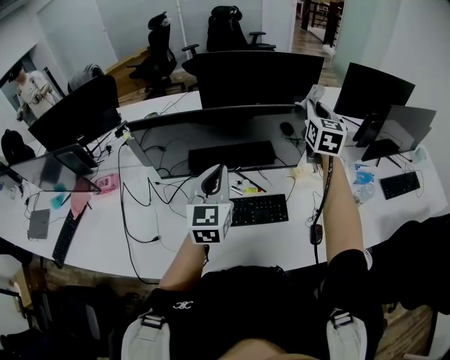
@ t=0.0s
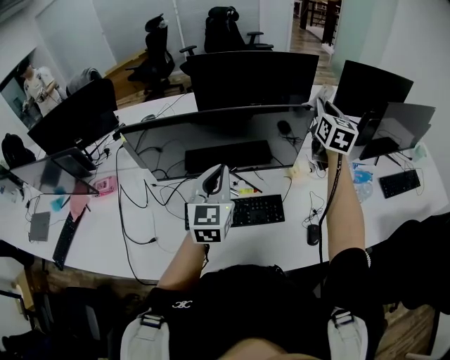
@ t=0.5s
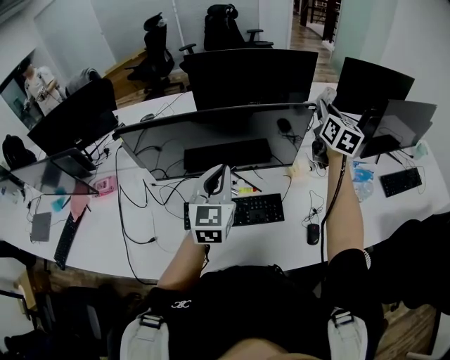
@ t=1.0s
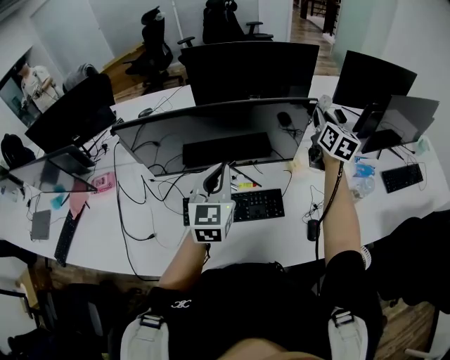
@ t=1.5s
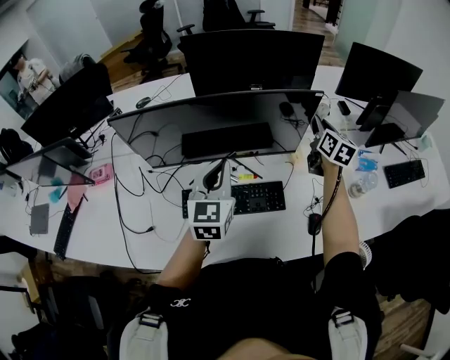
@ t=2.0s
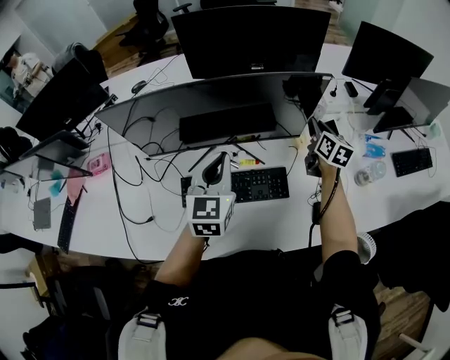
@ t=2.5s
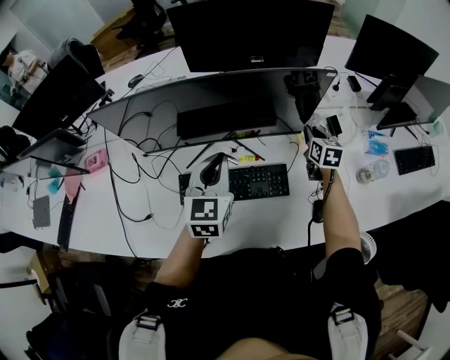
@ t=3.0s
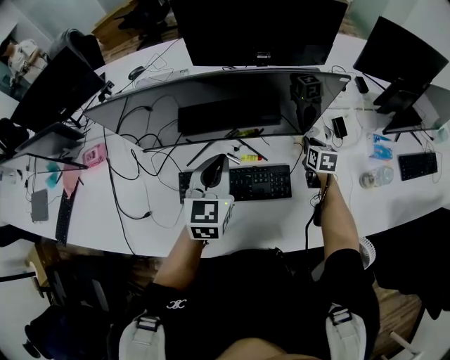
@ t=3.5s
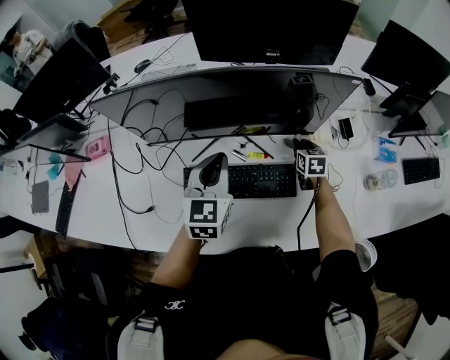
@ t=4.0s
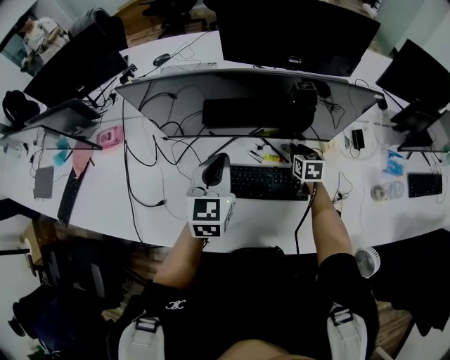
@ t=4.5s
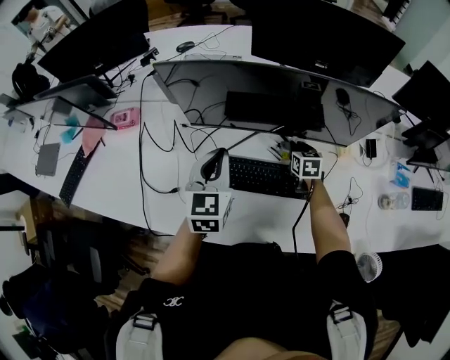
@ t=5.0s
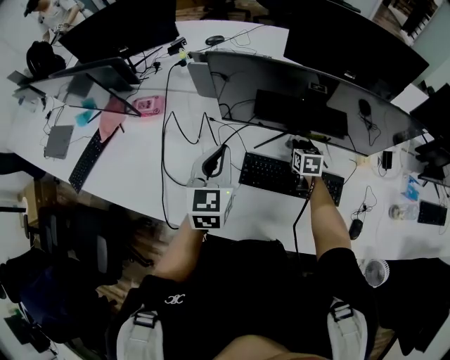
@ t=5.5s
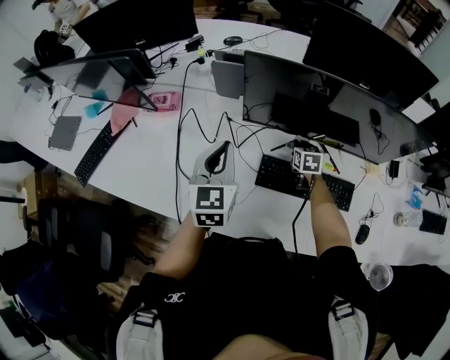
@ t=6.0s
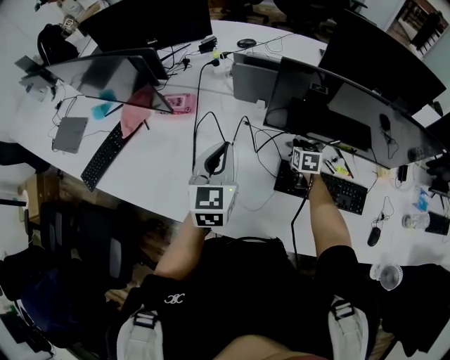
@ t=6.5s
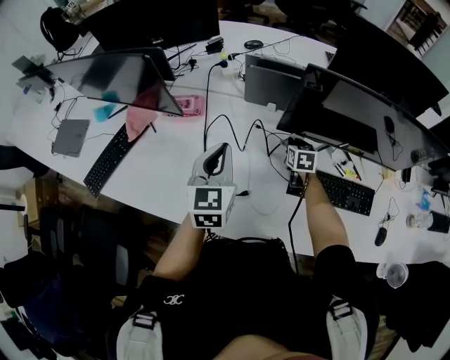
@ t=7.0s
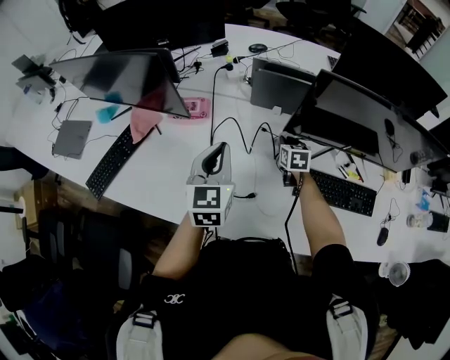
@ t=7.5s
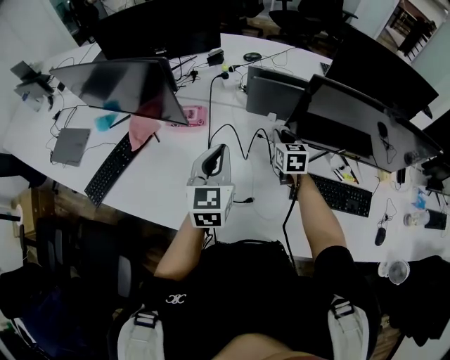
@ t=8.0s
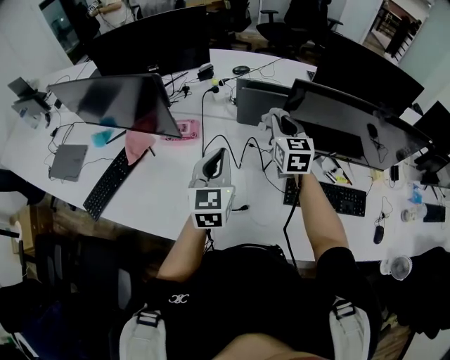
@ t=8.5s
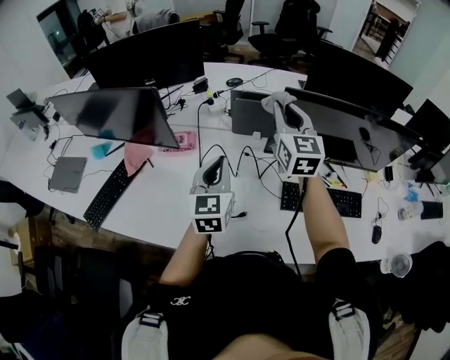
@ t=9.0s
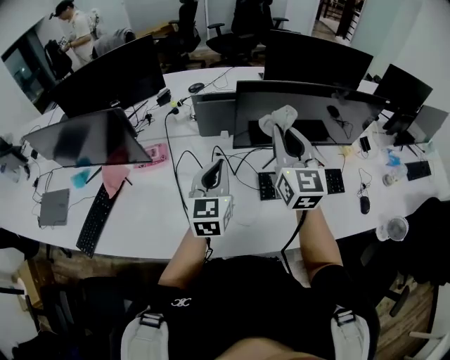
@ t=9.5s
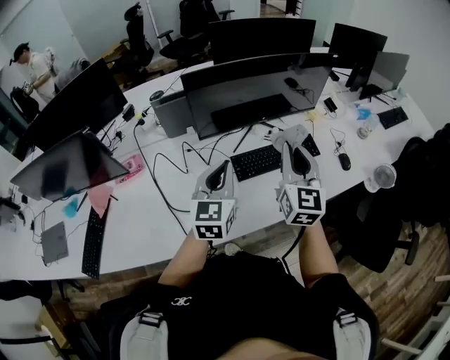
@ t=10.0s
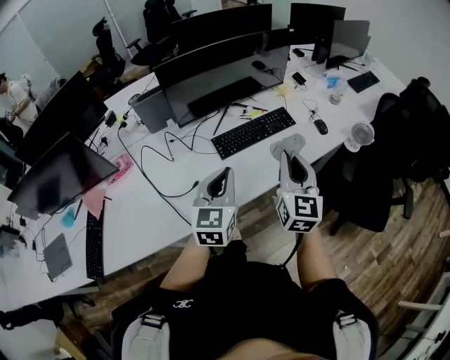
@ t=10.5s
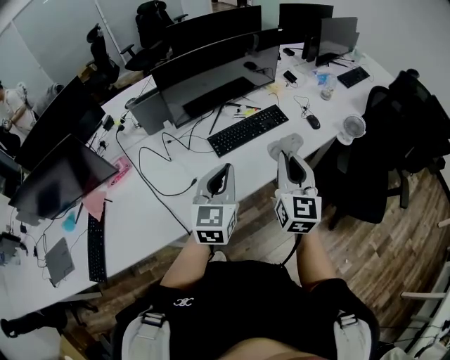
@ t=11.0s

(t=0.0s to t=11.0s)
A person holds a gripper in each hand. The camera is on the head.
t=0.0s - t=2.0s: The left gripper shifts by roughly 5 cm. Meanwhile the right gripper moves downward and to the right, some 15 cm, and changes its angle by roughly 20 degrees.
t=2.0s - t=3.5s: The right gripper moves downward, approximately 25 cm, and turns by approximately 30 degrees. The left gripper travels downward by some 5 cm.
t=3.5s - t=5.5s: The grippers both shift to the left by about 30 cm.
t=5.5s - t=7.5s: The grippers both shift to the left by approximately 25 cm.
t=7.5s - t=9.0s: The right gripper shifts some 35 cm upward, and tips its fingers upward by about 40 degrees. Meanwhile the left gripper ends up about 5 cm from where it was.
t=9.0s - t=11.0s: The right gripper moves roughly 50 cm, and swivels some 40 degrees. Meanwhile the left gripper moves approximately 35 cm, and rotates roughly 40 degrees.

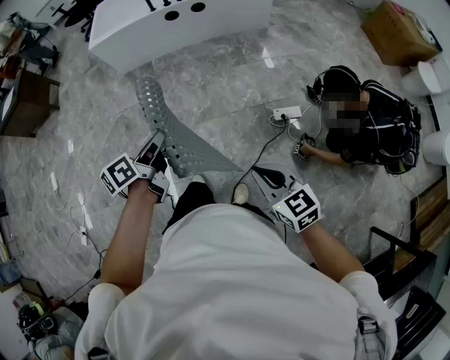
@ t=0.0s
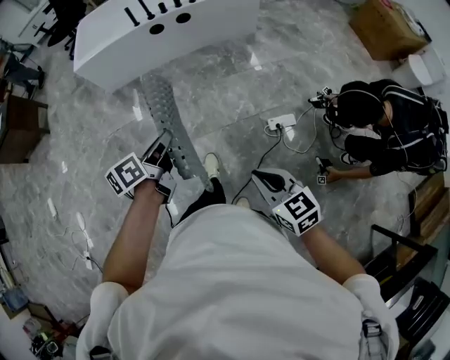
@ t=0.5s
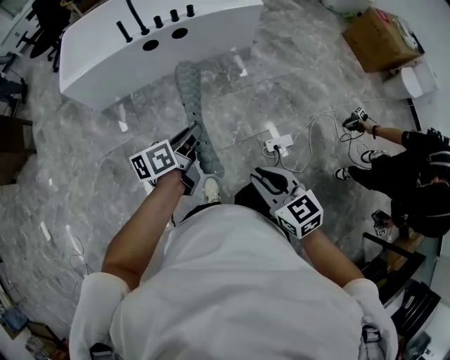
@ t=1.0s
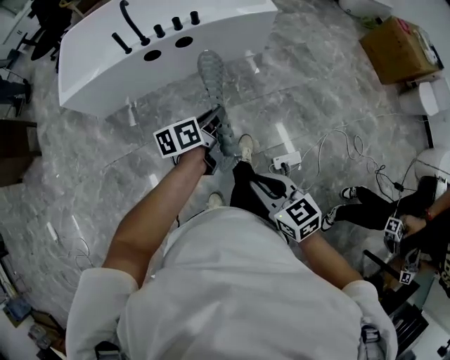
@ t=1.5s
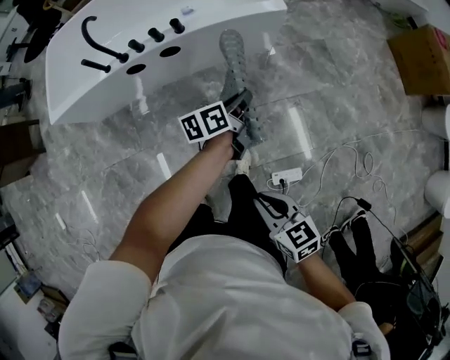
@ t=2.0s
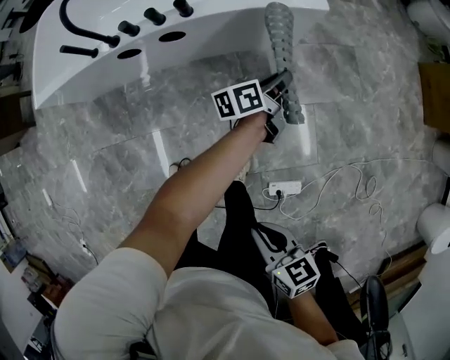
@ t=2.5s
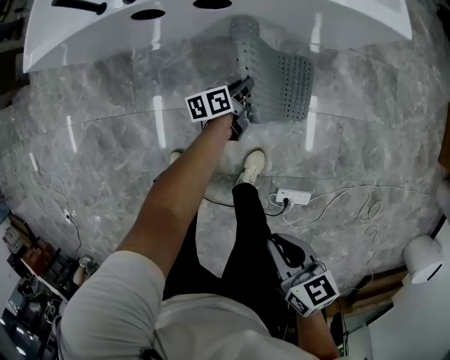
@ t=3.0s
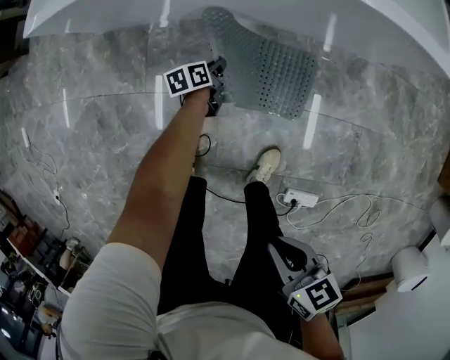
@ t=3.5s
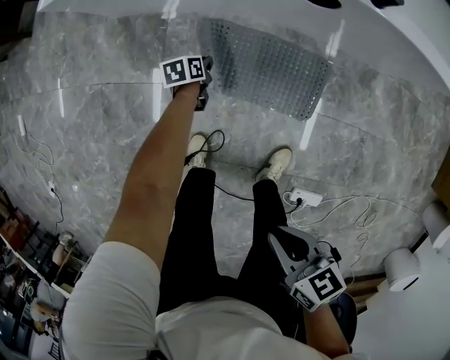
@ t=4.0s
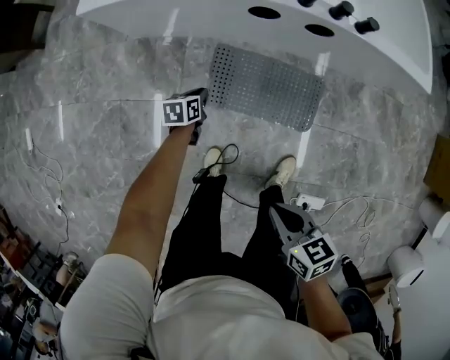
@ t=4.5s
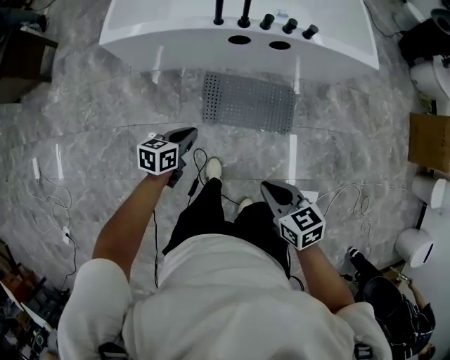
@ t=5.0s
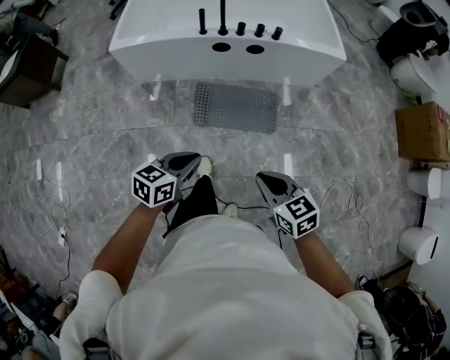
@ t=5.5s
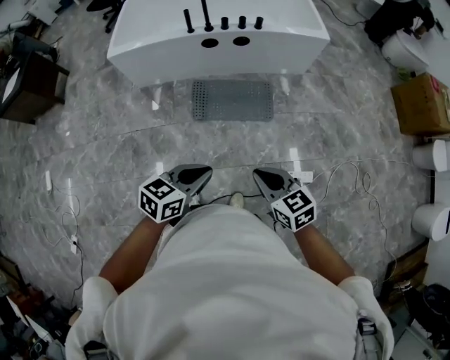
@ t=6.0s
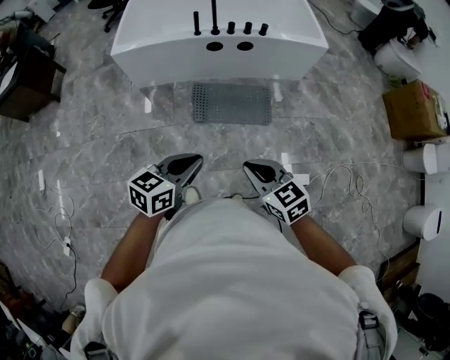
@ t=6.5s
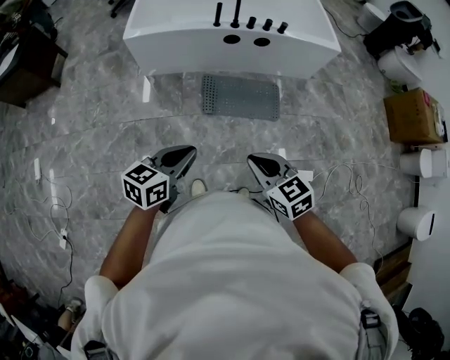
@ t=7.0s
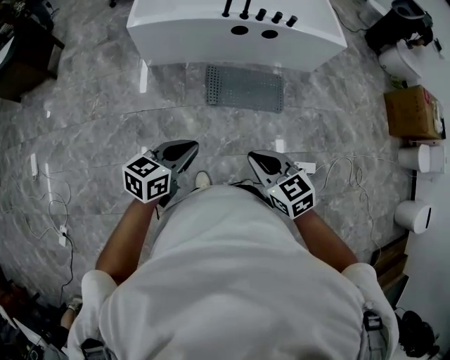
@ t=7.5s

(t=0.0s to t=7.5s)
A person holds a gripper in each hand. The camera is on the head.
t=0.0s - t=2.0s: The pair of grippers is taken forward, about 70 cm.
t=2.0s - t=4.0s: The right gripper ends up roughly 30 cm from where it was, and rotates some 30 degrees; the left gripper moves roughly 70 cm, and tilts its fingers roughly 30 degrees downward.
t=4.0s - t=5.5s: The right gripper travels upward by about 25 cm, and turns by roughly 30 degrees. Meanwhile the left gripper is displaced upward by some 60 cm, and changes its angle by some 50 degrees.
t=5.5s - t=7.5s: Both grippers move to the left and backward, about 25 cm.

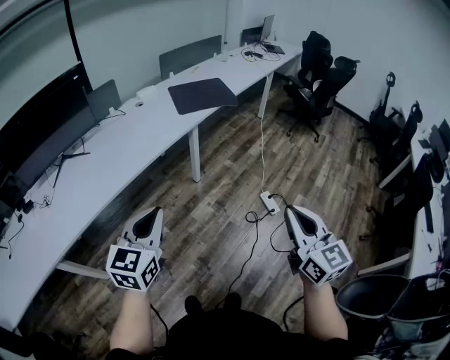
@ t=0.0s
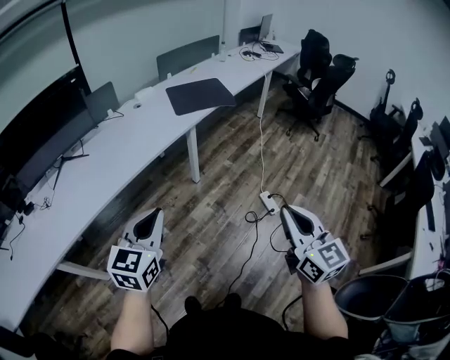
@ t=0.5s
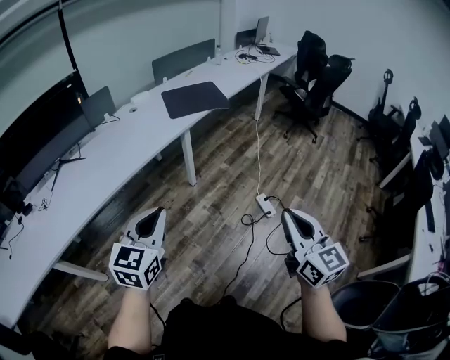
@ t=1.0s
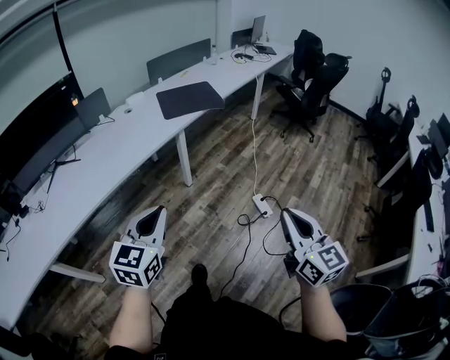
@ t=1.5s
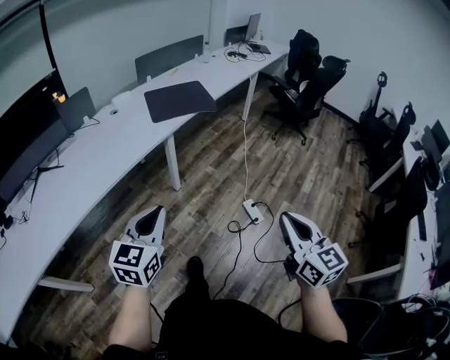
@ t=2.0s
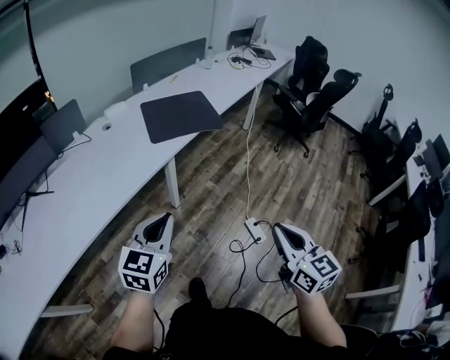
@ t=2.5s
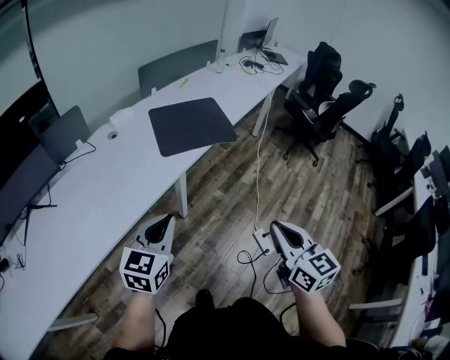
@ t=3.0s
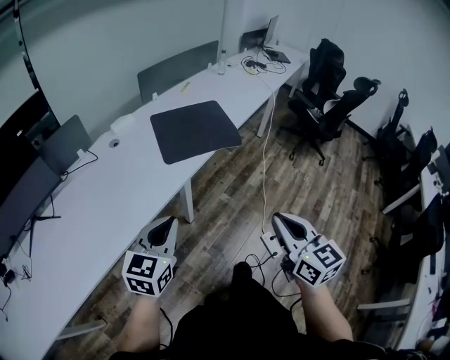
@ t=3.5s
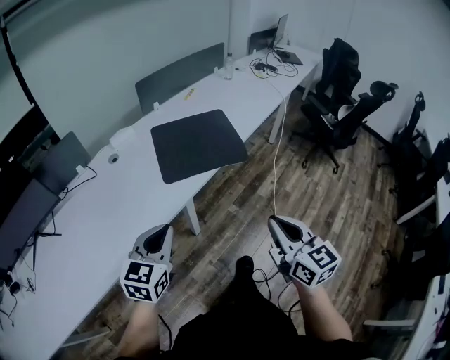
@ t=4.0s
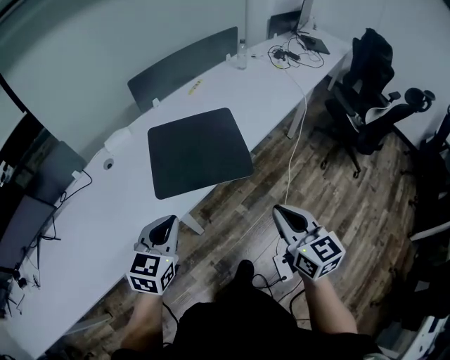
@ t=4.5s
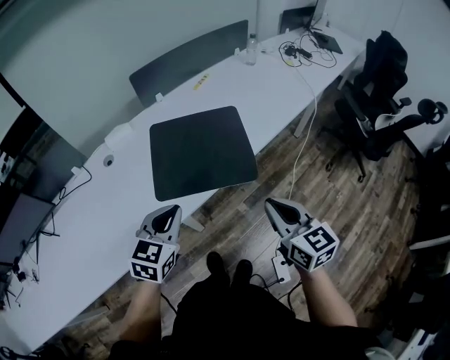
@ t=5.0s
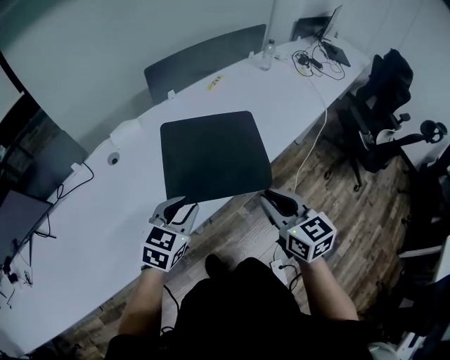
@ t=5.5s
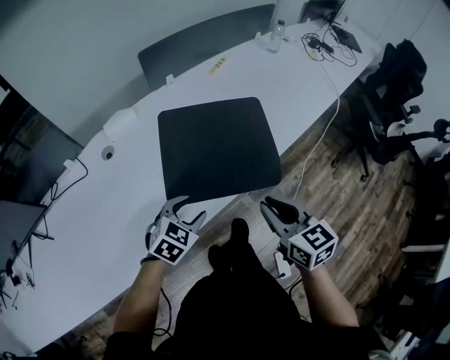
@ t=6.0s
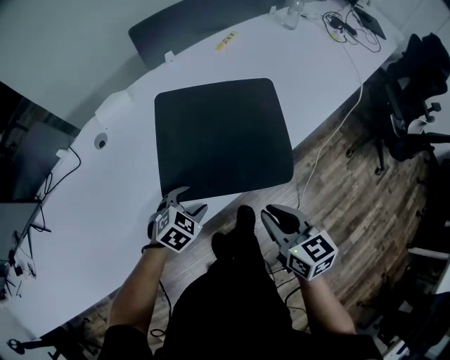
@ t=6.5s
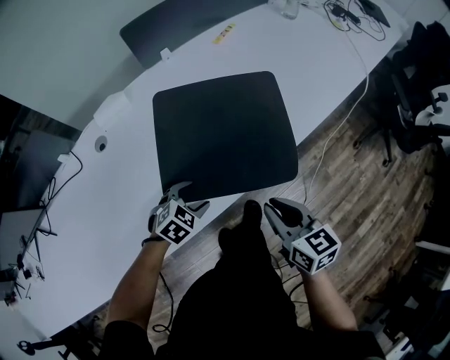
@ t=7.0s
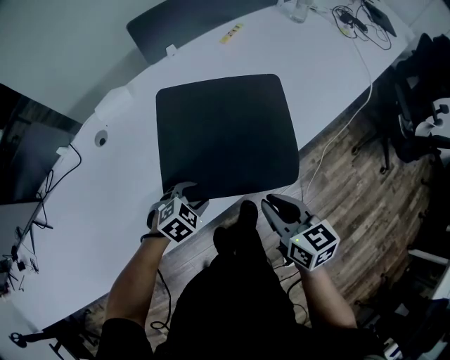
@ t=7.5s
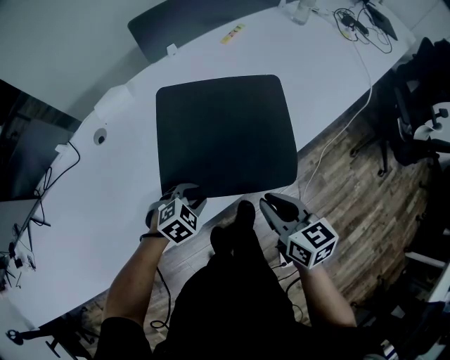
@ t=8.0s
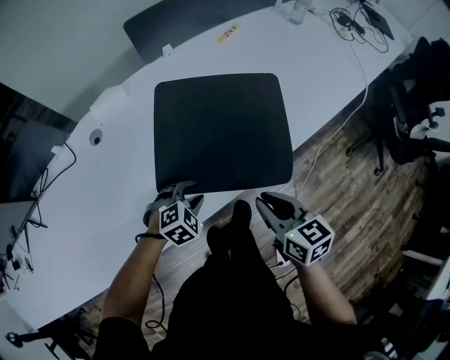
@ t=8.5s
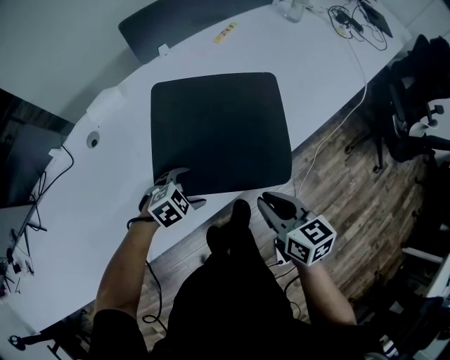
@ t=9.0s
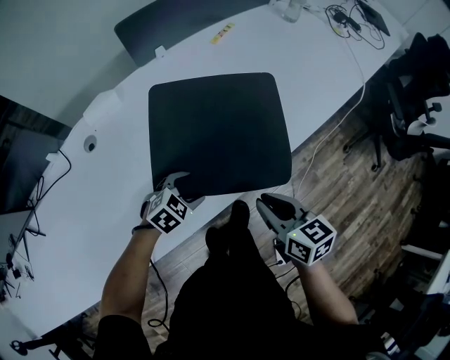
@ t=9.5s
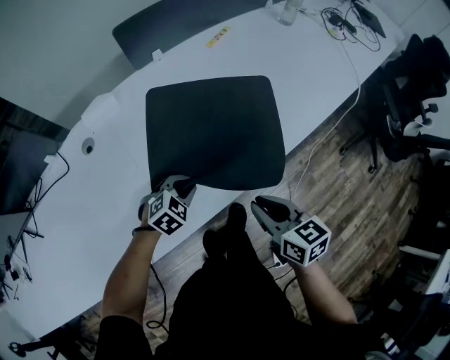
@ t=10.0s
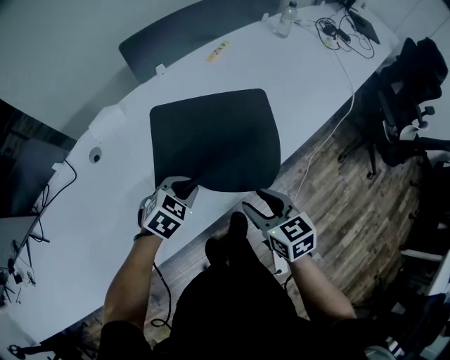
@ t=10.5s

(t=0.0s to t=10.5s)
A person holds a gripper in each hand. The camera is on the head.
t=0.0s - t=2.0s: The right gripper is displaced to the right and forward by some 15 cm. The left gripper is displaced forward and to the right by approximately 15 cm.
t=2.0s - t=4.0s: Both grippers are carried forward, about 50 cm.
t=4.0s - t=6.5s: The two grippers go approximately 40 cm forward and downward. The right gripper turns by about 30 degrees; the left gripper angles its fingers downward, by approximately 40 degrees, and opens up.
t=6.5s - t=8.5s: The right gripper changes place by about 5 cm, while the left gripper closes up.
t=8.5s - t=10.5s: The right gripper opens up. The left gripper shifts approximately 10 cm upward and forward, and opens and closes again.
